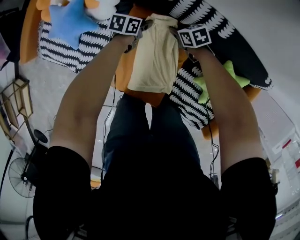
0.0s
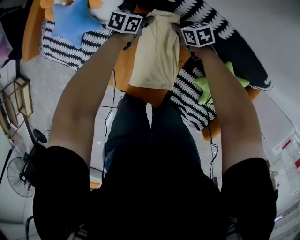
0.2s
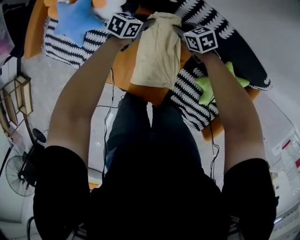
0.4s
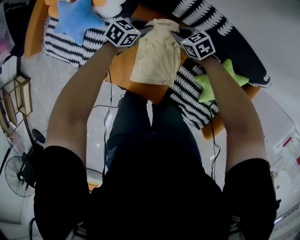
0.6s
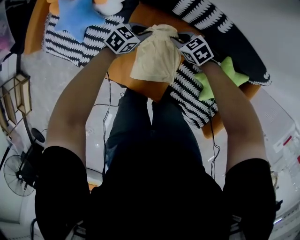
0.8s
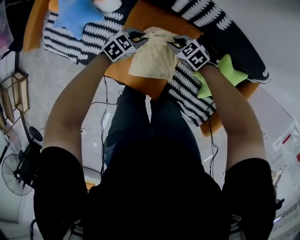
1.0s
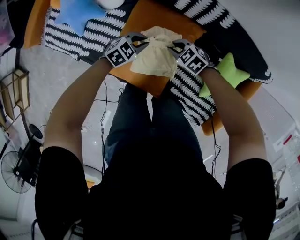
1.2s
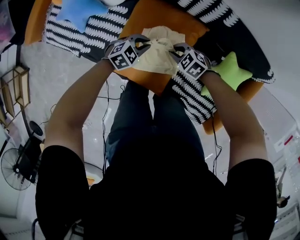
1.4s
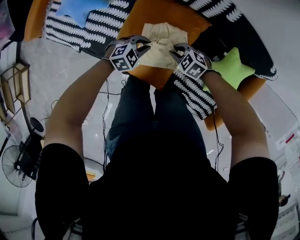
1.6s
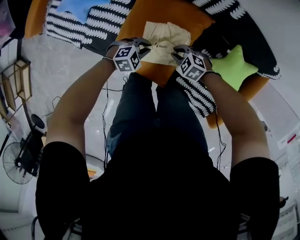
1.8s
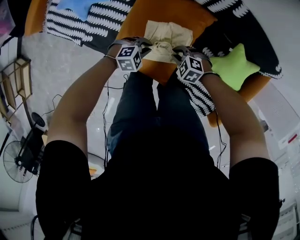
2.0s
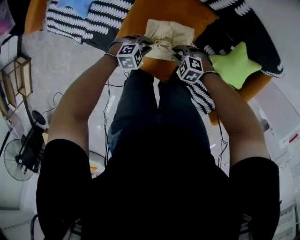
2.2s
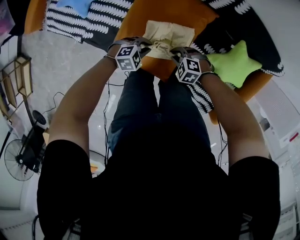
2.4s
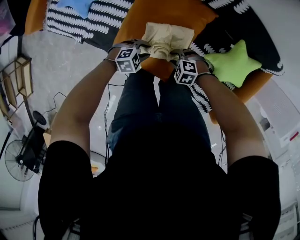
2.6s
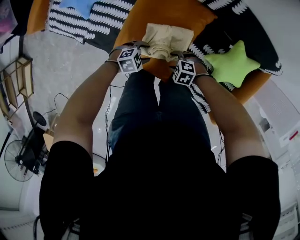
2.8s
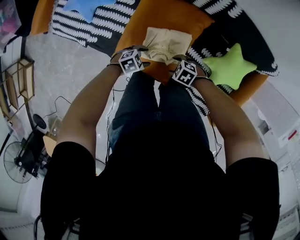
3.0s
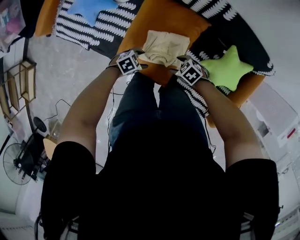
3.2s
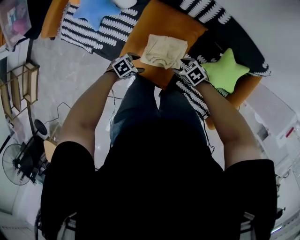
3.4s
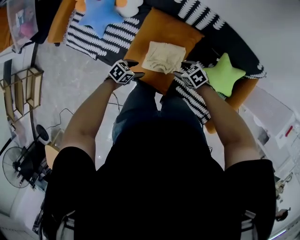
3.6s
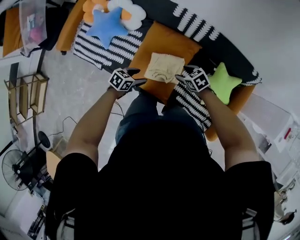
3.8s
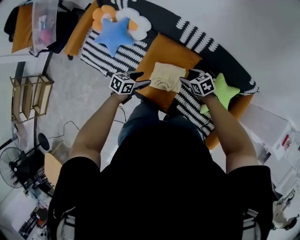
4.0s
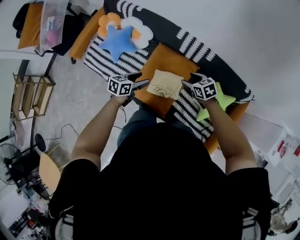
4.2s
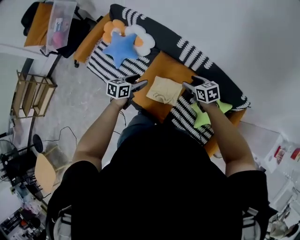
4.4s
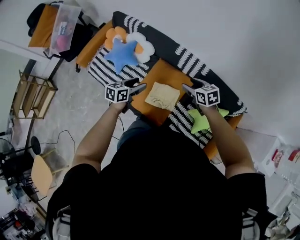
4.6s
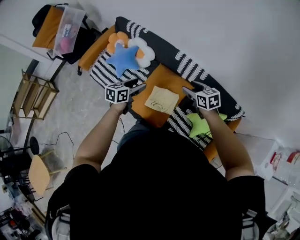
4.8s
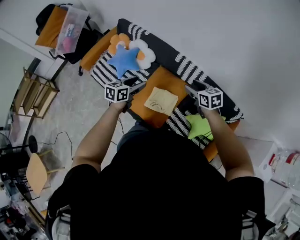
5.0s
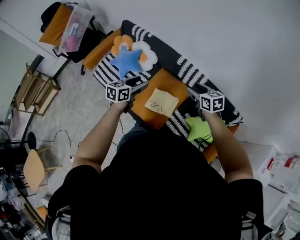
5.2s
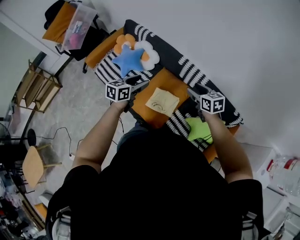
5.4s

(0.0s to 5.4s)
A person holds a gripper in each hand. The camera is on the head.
0.0s - 1.4s: The right gripper shifts by approximately 20 cm, and swivels roughly 40 degrees; the left gripper moves approximately 20 cm, and twists approximately 50 degrees clockwise, seen from behind.
1.4s - 2.8s: The right gripper moves approximately 15 cm, rotates roughly 20 degrees, and opens up; the left gripper ends up some 15 cm from where it was, and opens up.
2.8s - 4.0s: Both grippers move upward, approximately 25 cm. The right gripper turns by some 50 degrees. Meanwhile the left gripper twists about 40 degrees counterclockwise, seen from behind.
4.0s - 5.4s: Both grippers move upward, approximately 25 cm. The right gripper swivels some 20 degrees, while the left gripper turns by roughly 30 degrees.

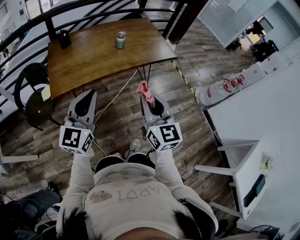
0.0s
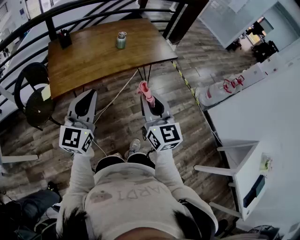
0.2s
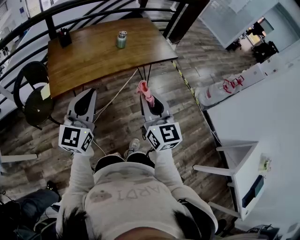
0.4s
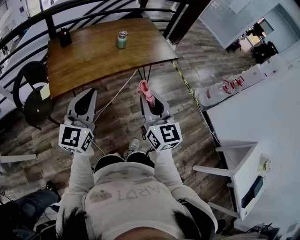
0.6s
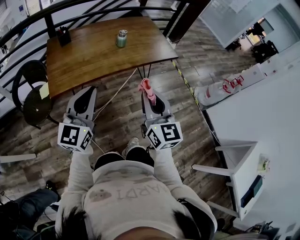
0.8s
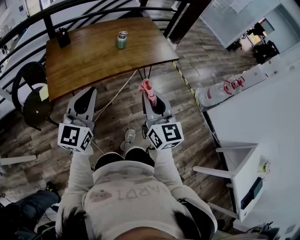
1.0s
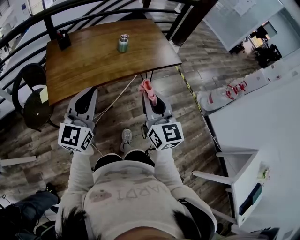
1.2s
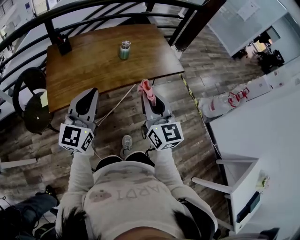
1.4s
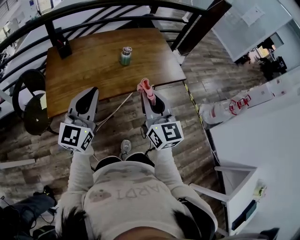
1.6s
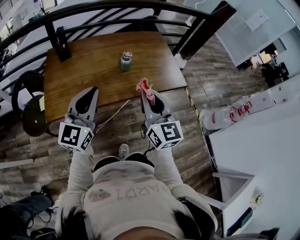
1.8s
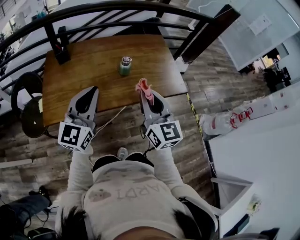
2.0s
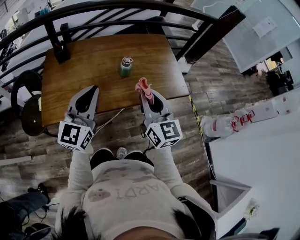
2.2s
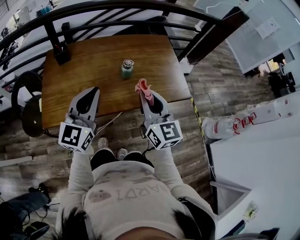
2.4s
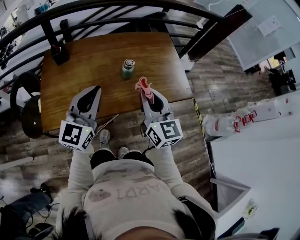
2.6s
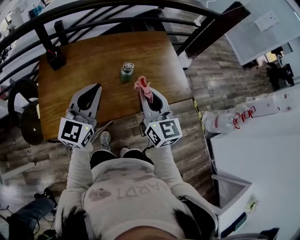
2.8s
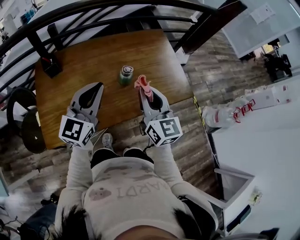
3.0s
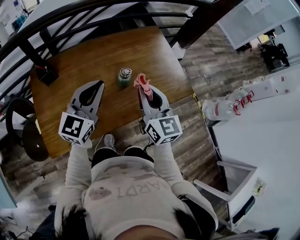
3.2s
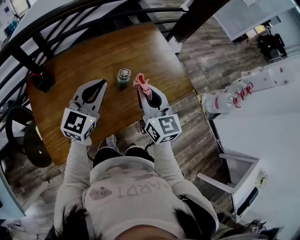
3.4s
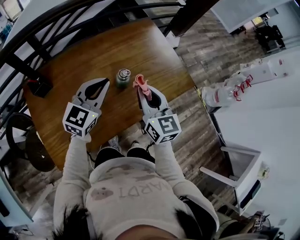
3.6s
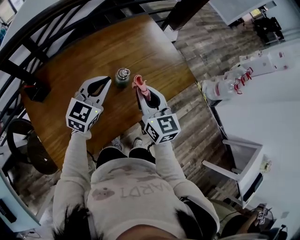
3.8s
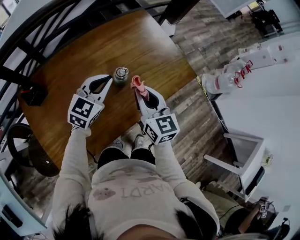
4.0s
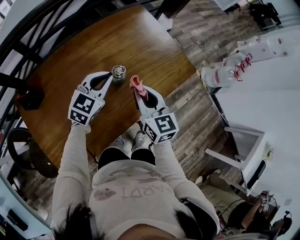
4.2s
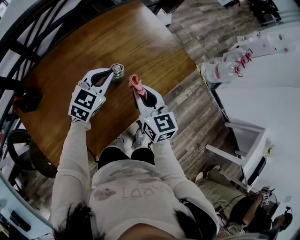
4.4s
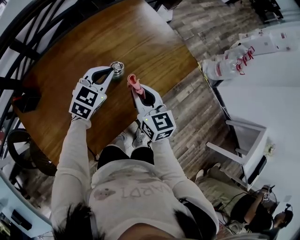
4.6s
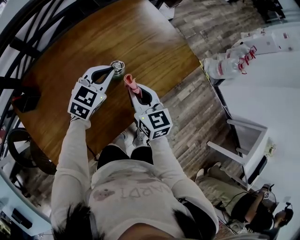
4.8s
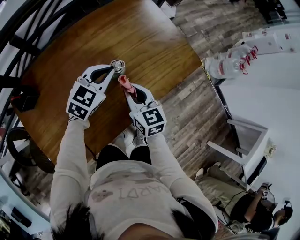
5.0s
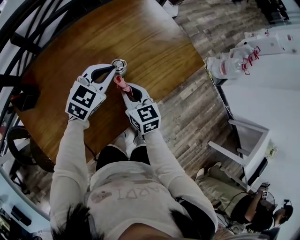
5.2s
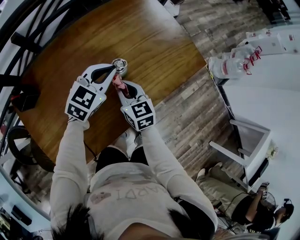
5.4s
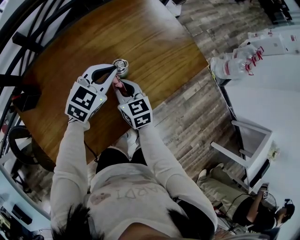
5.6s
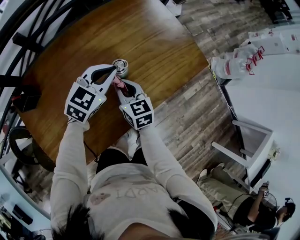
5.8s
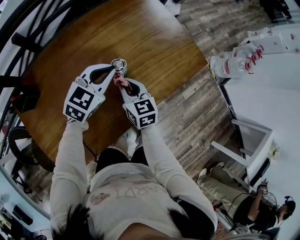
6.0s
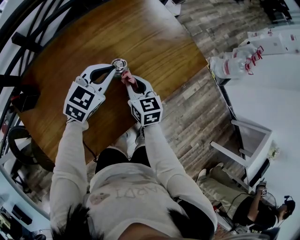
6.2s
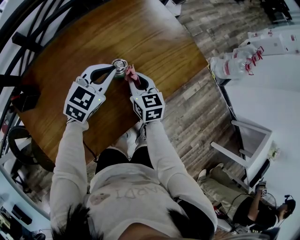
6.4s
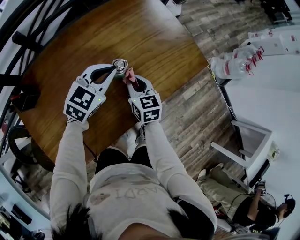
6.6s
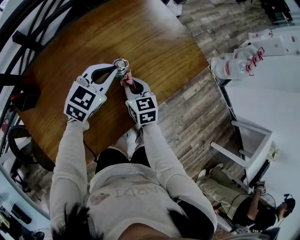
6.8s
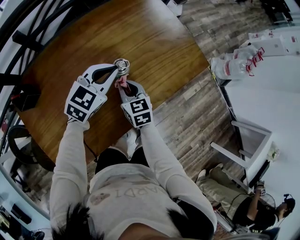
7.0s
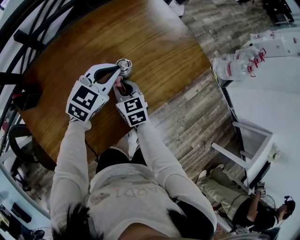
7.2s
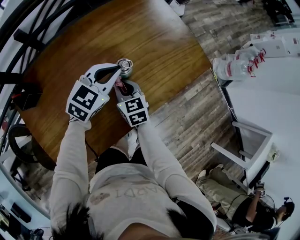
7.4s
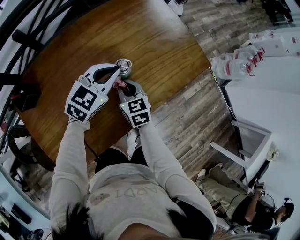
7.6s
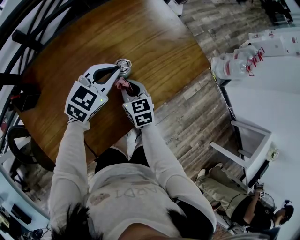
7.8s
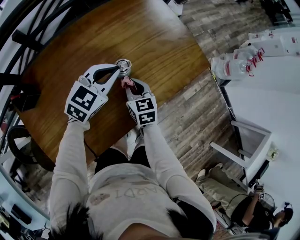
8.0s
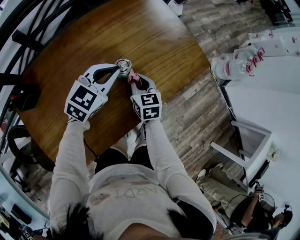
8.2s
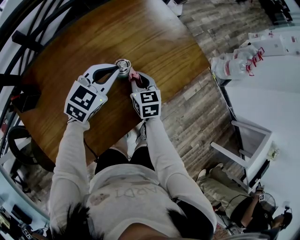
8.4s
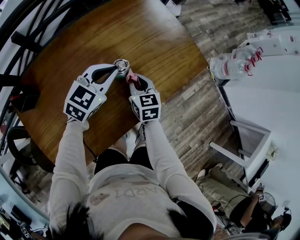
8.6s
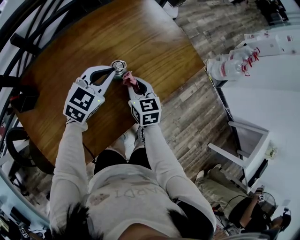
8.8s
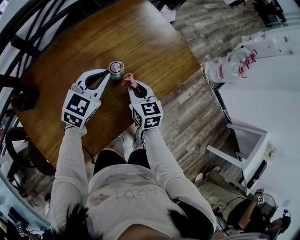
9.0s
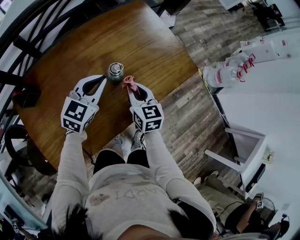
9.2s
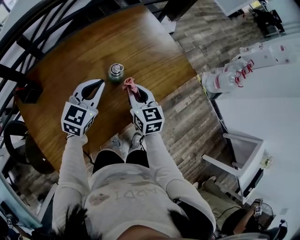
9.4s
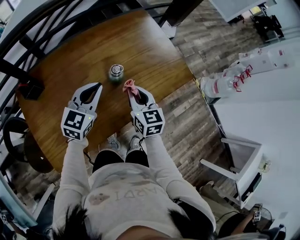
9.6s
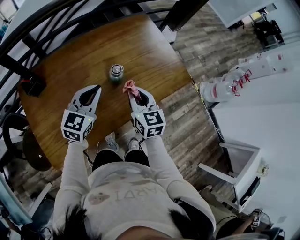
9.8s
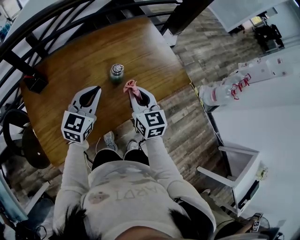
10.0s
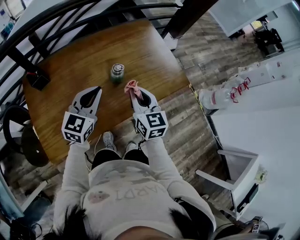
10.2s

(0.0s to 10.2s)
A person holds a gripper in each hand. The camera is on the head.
0.0s - 1.4s: Both grippers travel together forward, roughly 15 cm.
1.4s - 3.0s: The grippers both shift forward by about 30 cm.
3.0s - 4.4s: The right gripper shifts approximately 15 cm downward and forward, and swivels roughly 20 degrees. The left gripper goes approximately 25 cm downward and forward, and changes its angle by roughly 40 degrees.
4.4s - 5.8s: The right gripper shifts about 15 cm downward and to the left.
7.2s - 8.8s: The right gripper moves to the right, roughly 5 cm.
8.8s - 10.2s: The left gripper heads backward and upward, covering about 20 cm, and changes its angle by approximately 30 degrees. Meanwhile the right gripper moves upward and backward, roughly 20 cm.

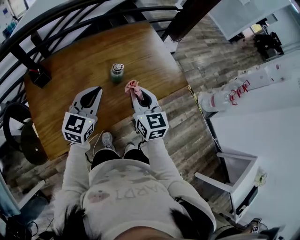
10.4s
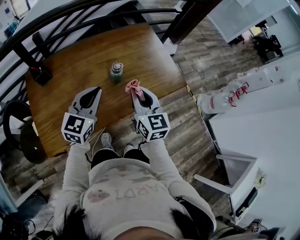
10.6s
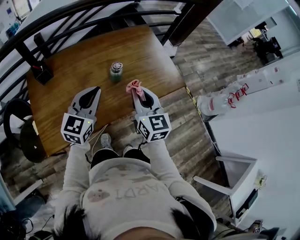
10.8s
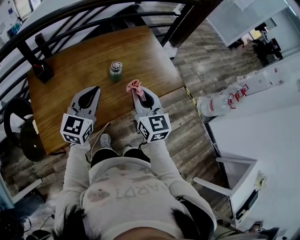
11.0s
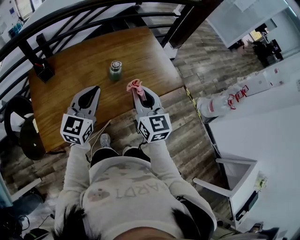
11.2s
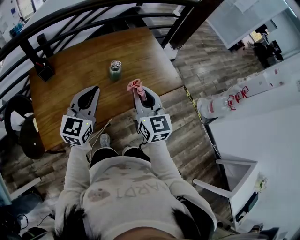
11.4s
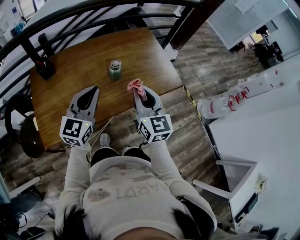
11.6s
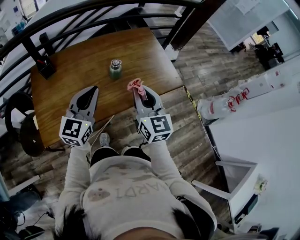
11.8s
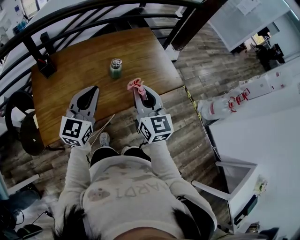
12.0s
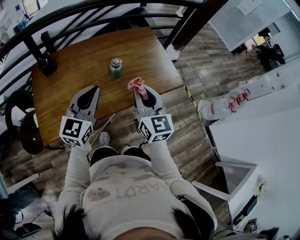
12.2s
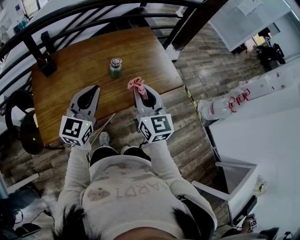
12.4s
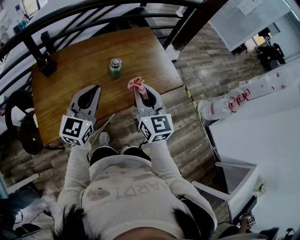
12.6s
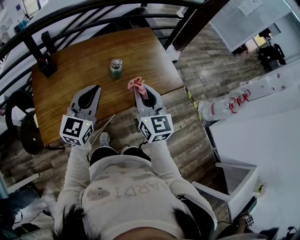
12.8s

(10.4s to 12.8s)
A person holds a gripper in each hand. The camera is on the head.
10.4s - 11.6s: The left gripper shifts some 10 cm backward. The right gripper shifts approximately 10 cm backward and upward.
11.6s - 12.8s: The grippers make only small movements.

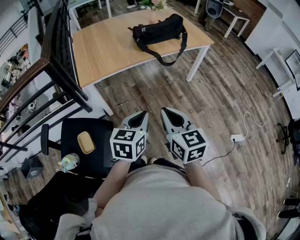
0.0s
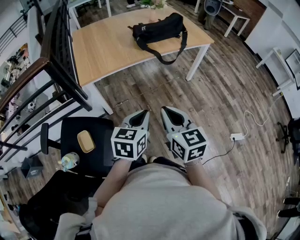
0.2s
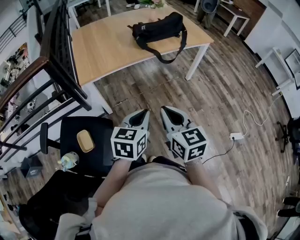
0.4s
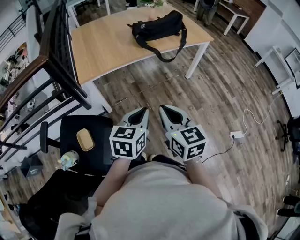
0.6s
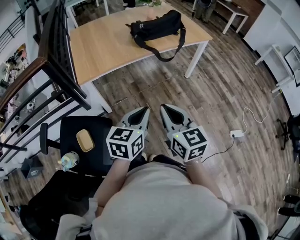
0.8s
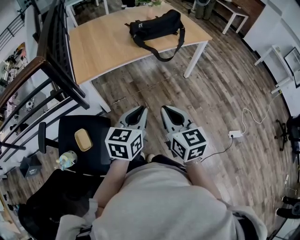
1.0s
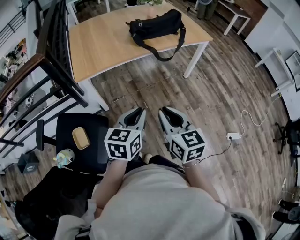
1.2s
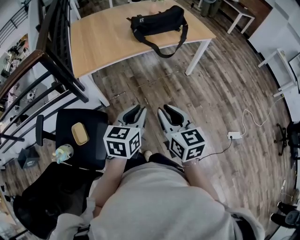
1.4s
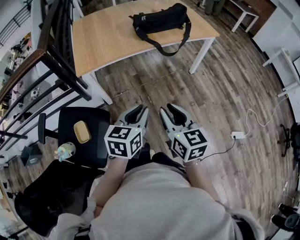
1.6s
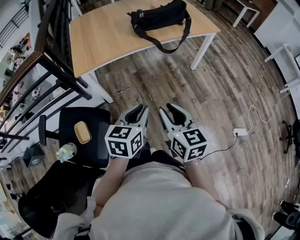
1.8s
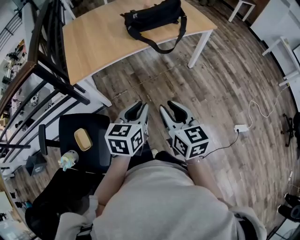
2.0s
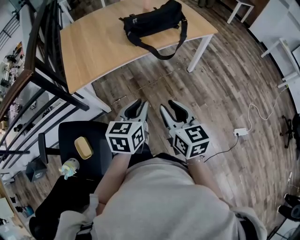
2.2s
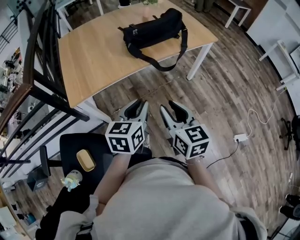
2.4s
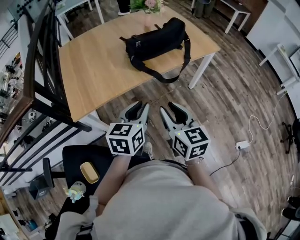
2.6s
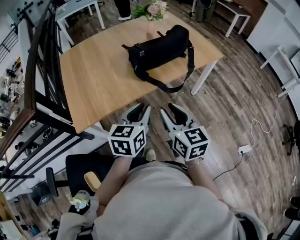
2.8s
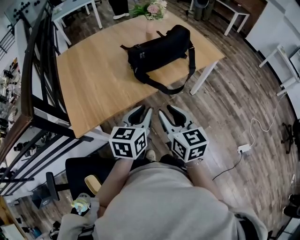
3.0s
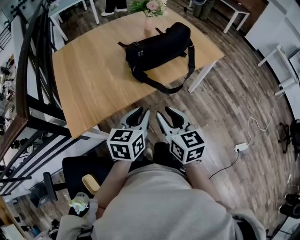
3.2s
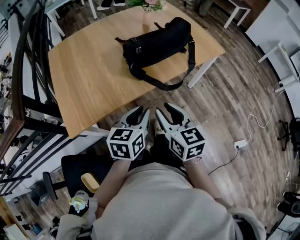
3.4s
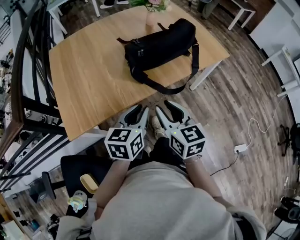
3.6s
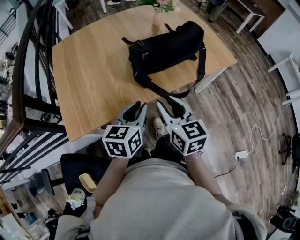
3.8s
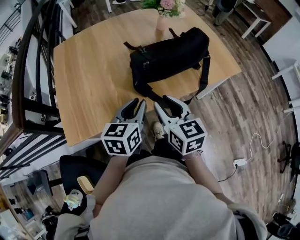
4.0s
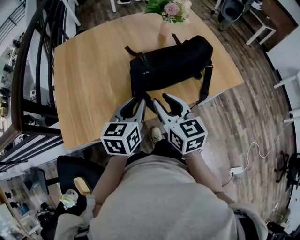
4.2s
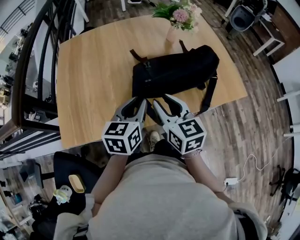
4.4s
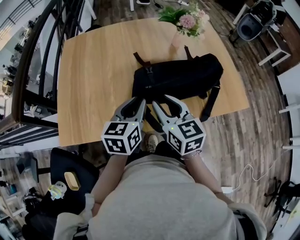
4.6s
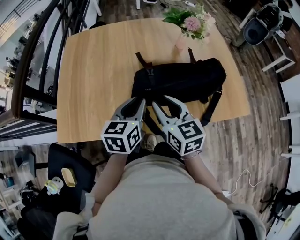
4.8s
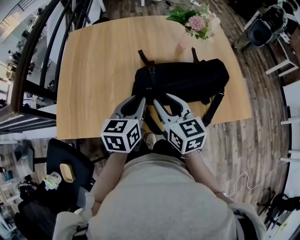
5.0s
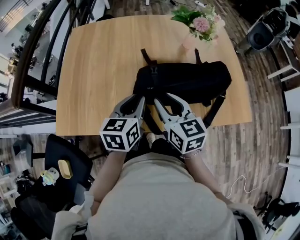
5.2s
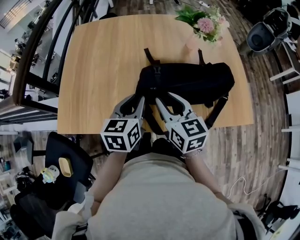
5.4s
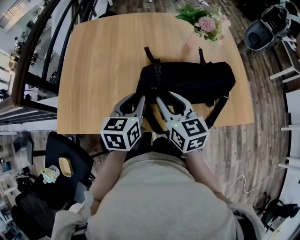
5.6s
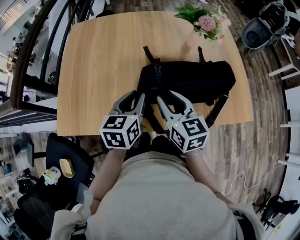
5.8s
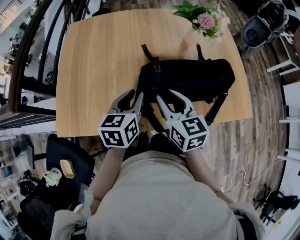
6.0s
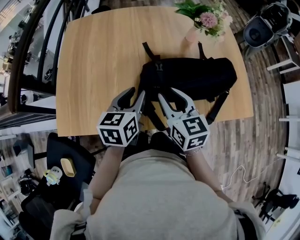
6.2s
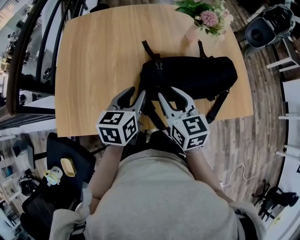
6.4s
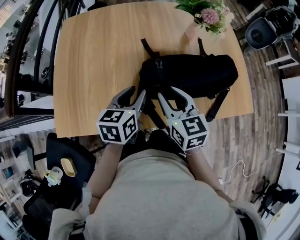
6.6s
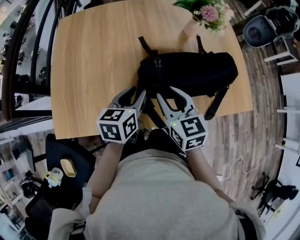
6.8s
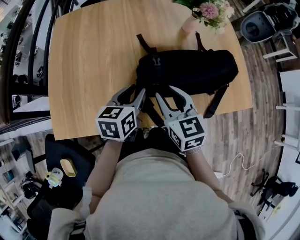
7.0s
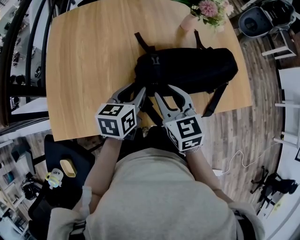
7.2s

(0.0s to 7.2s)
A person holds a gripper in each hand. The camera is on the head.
0.0s - 1.4s: The grippers make only small movements.
1.4s - 2.8s: The grippers both shift forward by approximately 30 cm.
2.8s - 4.4s: Both grippers travel together forward, some 25 cm.
4.4s - 5.8s: The grippers both shift forward by about 5 cm.
5.8s - 7.2s: The left gripper changes place by roughly 5 cm.
